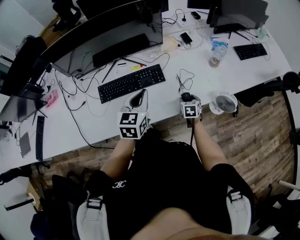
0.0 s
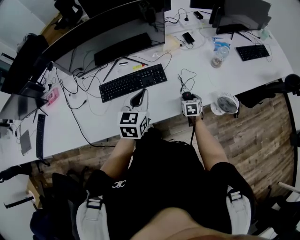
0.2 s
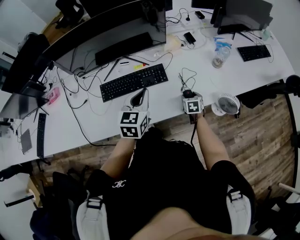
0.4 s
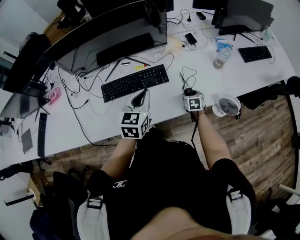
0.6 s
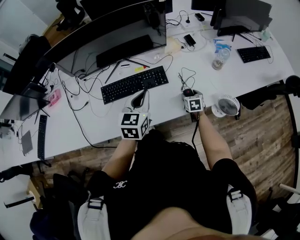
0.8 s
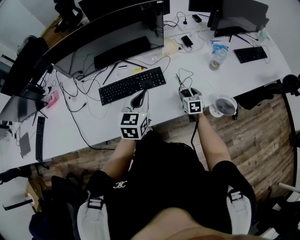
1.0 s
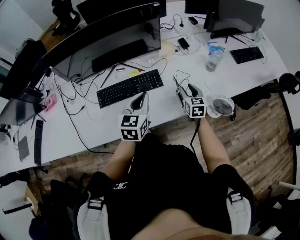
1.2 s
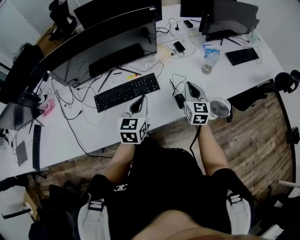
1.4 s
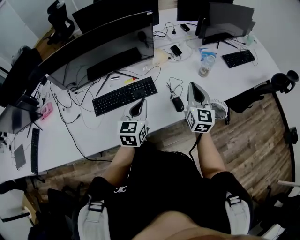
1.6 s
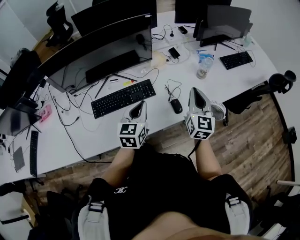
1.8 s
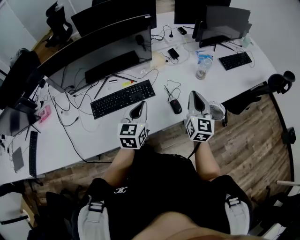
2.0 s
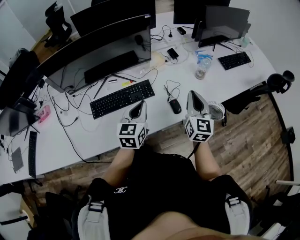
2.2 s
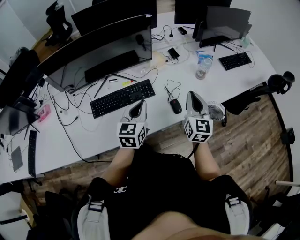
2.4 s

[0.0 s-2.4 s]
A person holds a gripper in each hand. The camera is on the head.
0.0 to 1.2 s: The right gripper travels upward by about 15 cm, and changes its angle by some 20 degrees.
1.2 to 2.4 s: The right gripper heads upward and backward, covering about 20 cm, swivels roughly 30 degrees, and closes up.

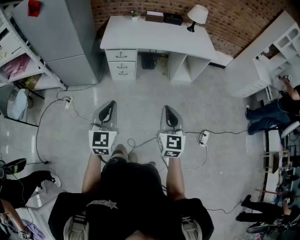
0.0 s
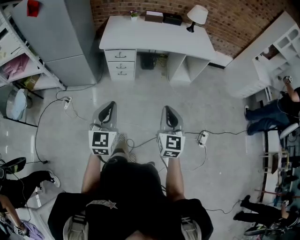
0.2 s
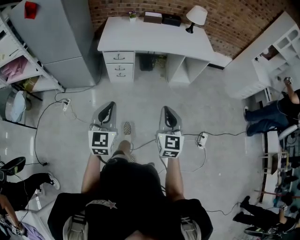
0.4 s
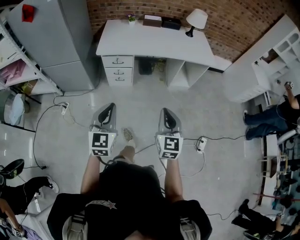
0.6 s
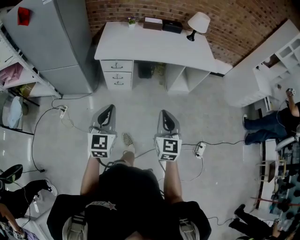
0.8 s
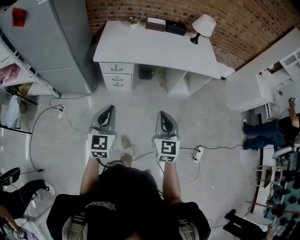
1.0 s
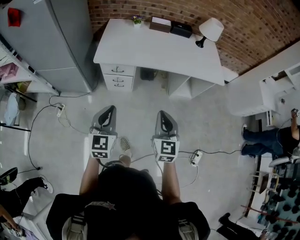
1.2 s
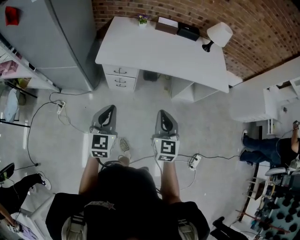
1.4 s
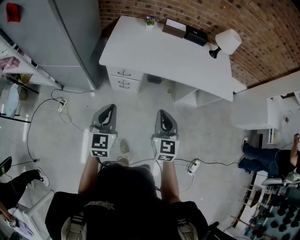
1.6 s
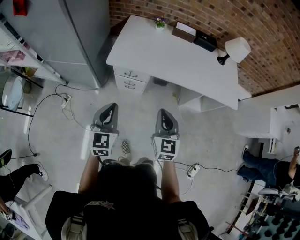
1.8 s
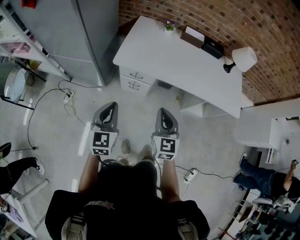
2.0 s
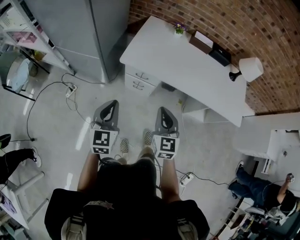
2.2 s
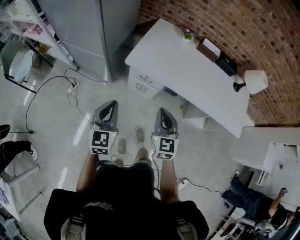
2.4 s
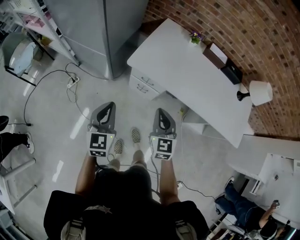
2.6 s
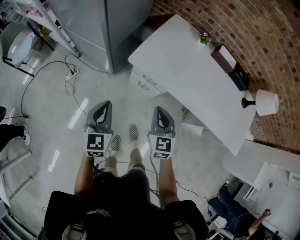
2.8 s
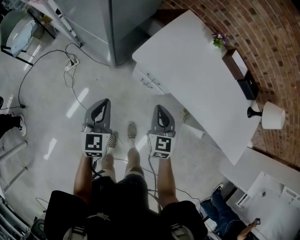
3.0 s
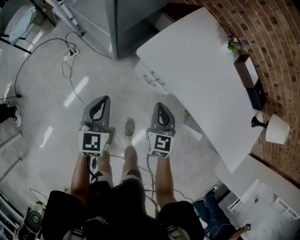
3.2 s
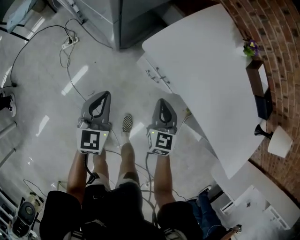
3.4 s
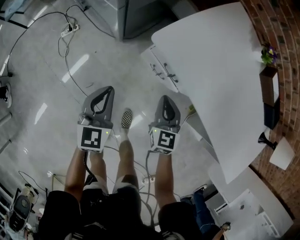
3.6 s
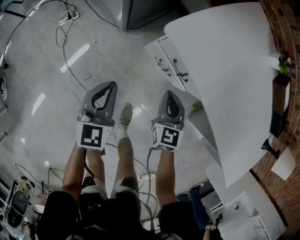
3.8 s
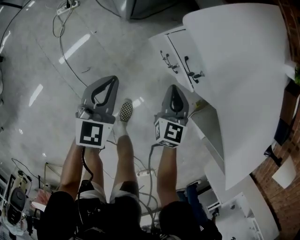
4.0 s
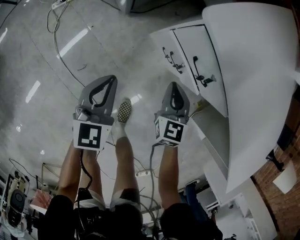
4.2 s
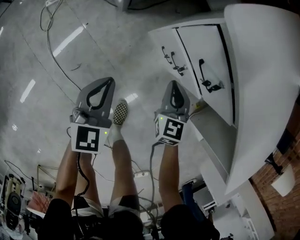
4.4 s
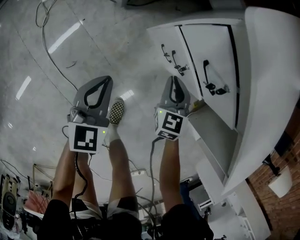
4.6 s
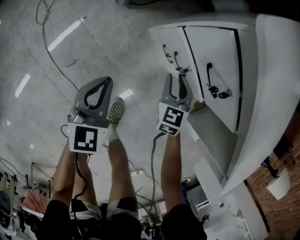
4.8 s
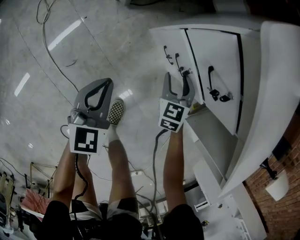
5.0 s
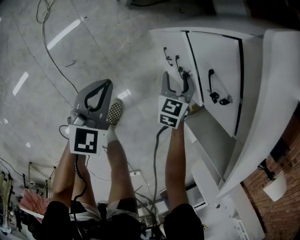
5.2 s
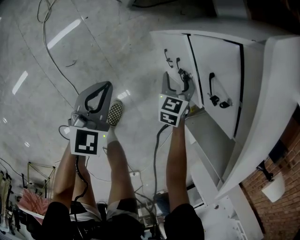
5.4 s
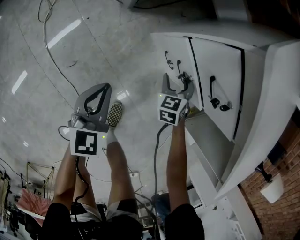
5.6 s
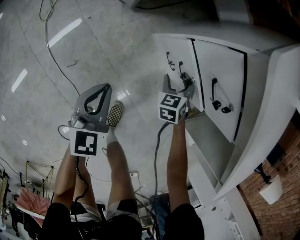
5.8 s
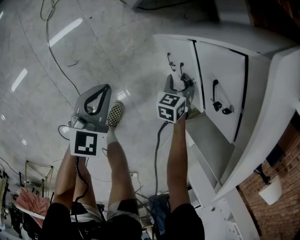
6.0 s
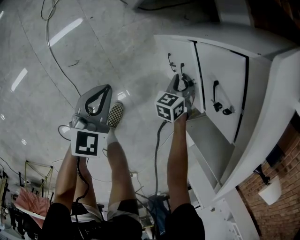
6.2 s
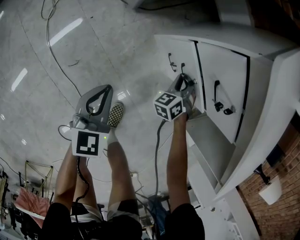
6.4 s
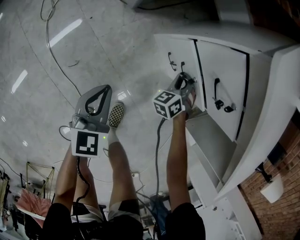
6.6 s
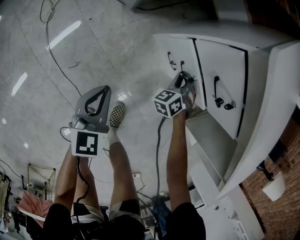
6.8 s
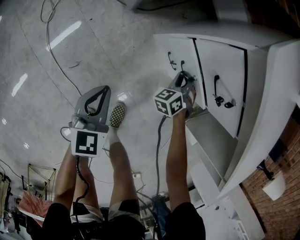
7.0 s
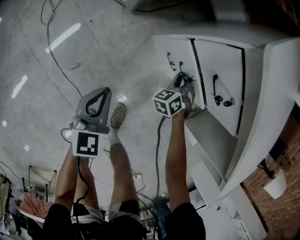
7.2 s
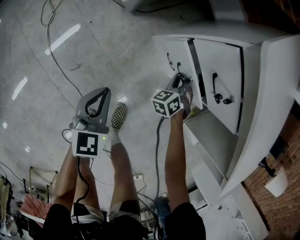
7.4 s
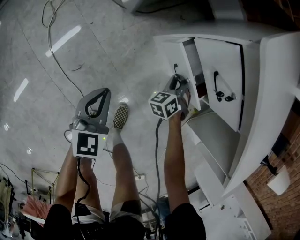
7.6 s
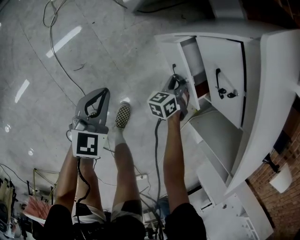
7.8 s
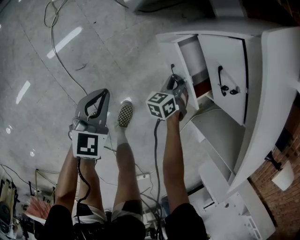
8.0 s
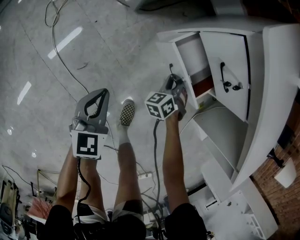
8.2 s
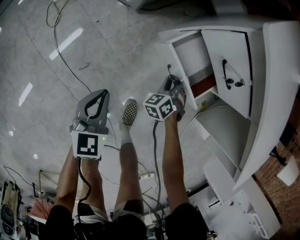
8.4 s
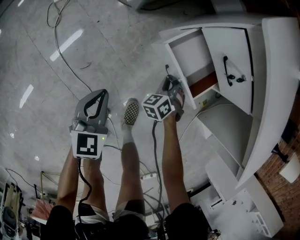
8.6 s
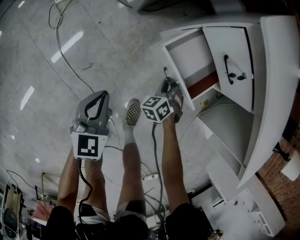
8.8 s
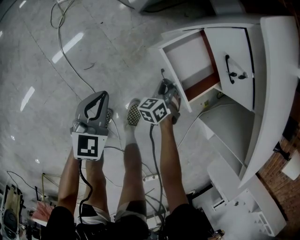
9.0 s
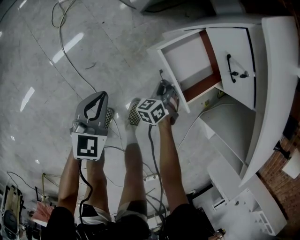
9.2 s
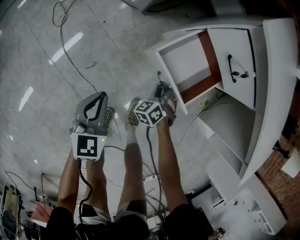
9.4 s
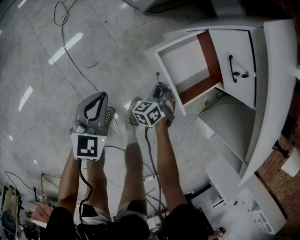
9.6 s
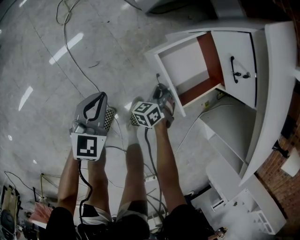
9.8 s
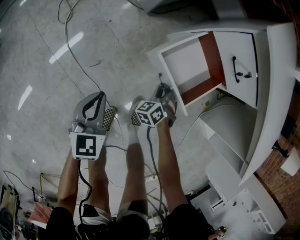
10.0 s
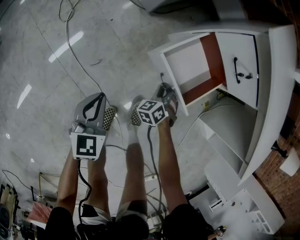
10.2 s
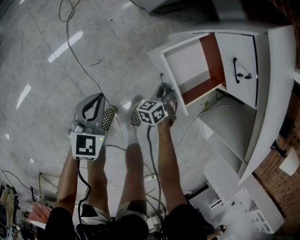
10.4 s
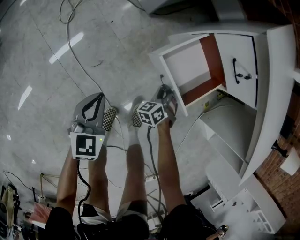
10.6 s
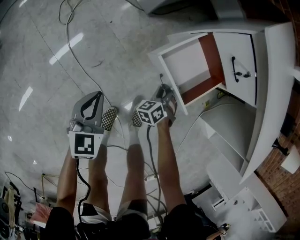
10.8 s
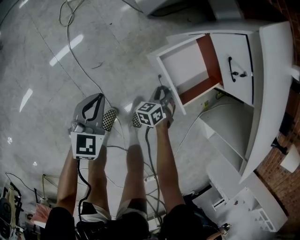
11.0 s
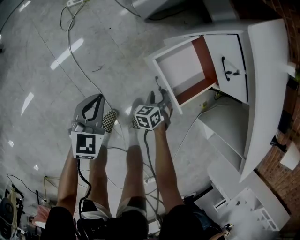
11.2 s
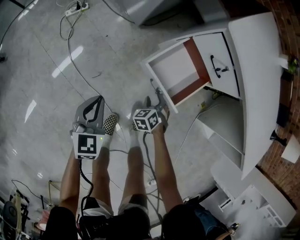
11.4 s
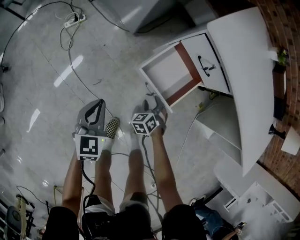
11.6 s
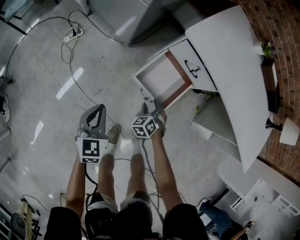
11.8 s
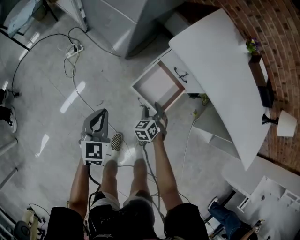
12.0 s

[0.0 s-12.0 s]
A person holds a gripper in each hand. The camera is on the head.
0.0 to 1.6 s: Both grippers travel together forward, about 35 cm.
1.6 to 3.0 s: The right gripper moves about 30 cm, and rotates some 30 degrees. Meanwhile the left gripper ends up approximately 25 cm from where it was, and rotates about 30 degrees.
3.0 to 4.4 s: Both grippers move downward, about 40 cm.
4.4 to 6.0 s: The right gripper heads downward, covering approximately 15 cm, changes its angle by some 40 degrees, and opens up. The left gripper is displaced downward by approximately 5 cm.
6.0 to 7.6 s: The right gripper closes up.
7.6 to 9.0 s: The left gripper heads backward, covering roughly 10 cm; the right gripper moves backward, roughly 15 cm.
9.0 to 10.4 s: Both grippers travel together backward, some 5 cm.
10.4 to 12.0 s: Both grippers move upward, approximately 25 cm. The right gripper opens.

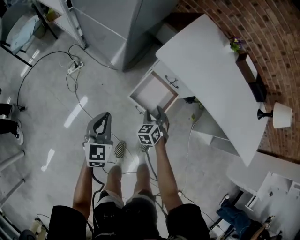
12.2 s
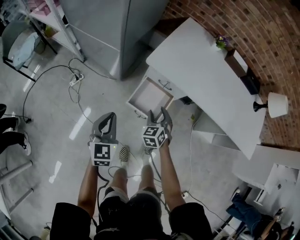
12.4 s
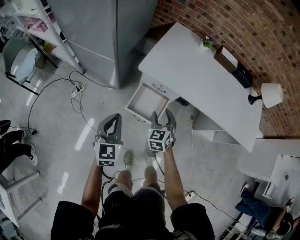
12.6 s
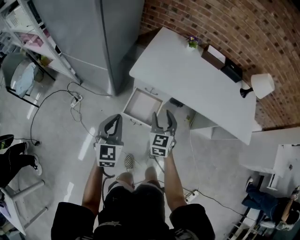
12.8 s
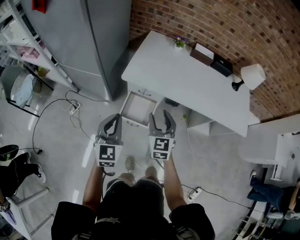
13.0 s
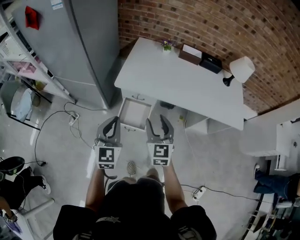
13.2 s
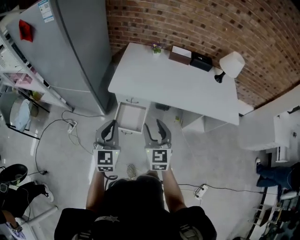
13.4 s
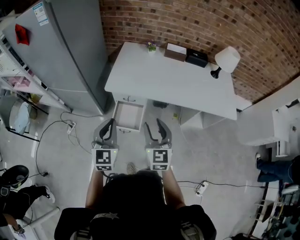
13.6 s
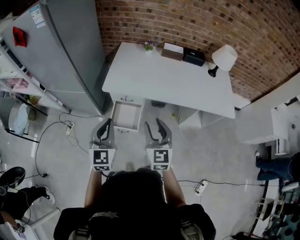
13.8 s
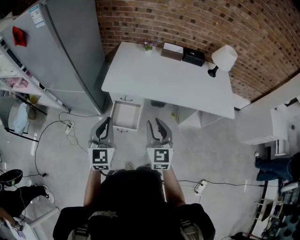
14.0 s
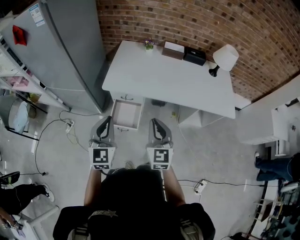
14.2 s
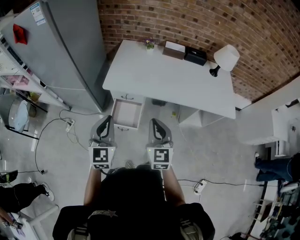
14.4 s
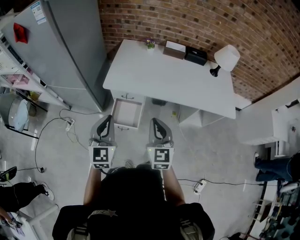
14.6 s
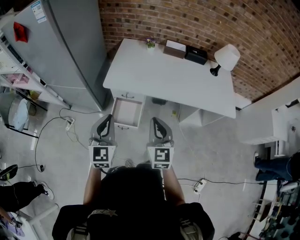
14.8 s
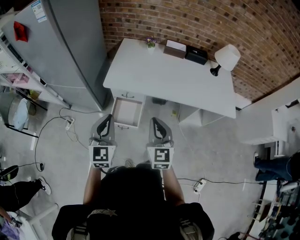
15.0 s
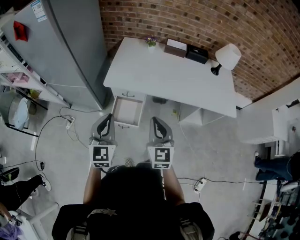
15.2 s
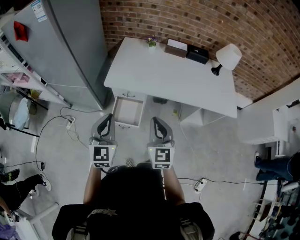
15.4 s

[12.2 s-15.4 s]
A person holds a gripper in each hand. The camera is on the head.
12.2 to 13.8 s: The grippers both shift upward and to the right by approximately 40 cm. The left gripper rotates roughly 30 degrees, while the right gripper tips its fingers upward by some 40 degrees.
13.8 to 15.4 s: The right gripper closes up.

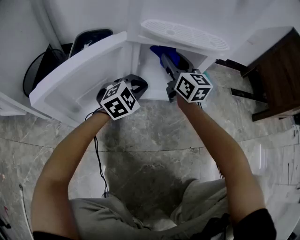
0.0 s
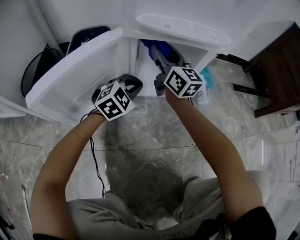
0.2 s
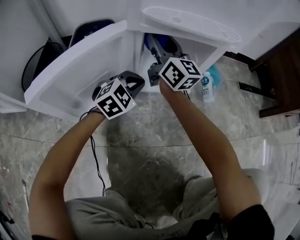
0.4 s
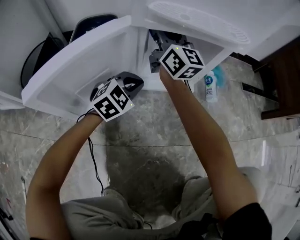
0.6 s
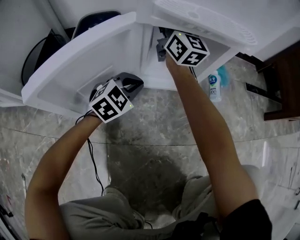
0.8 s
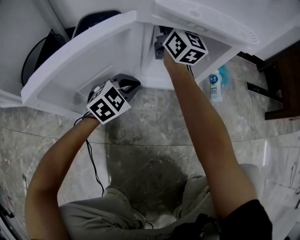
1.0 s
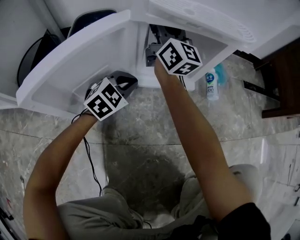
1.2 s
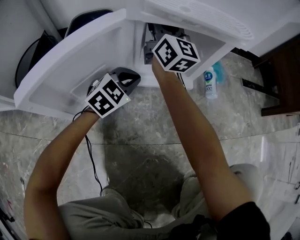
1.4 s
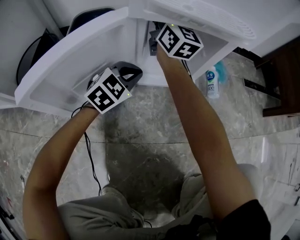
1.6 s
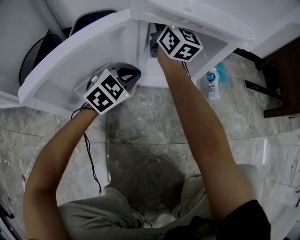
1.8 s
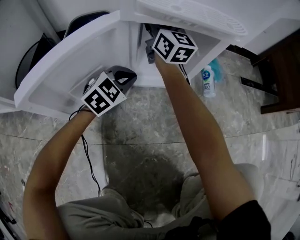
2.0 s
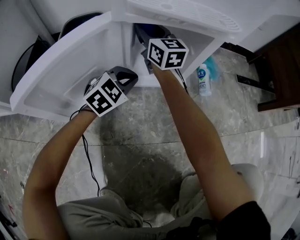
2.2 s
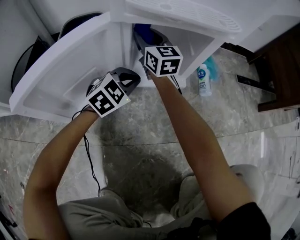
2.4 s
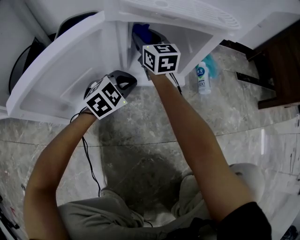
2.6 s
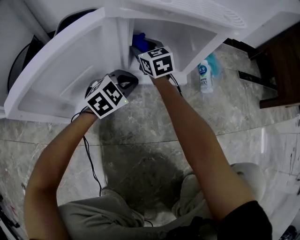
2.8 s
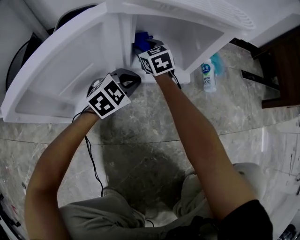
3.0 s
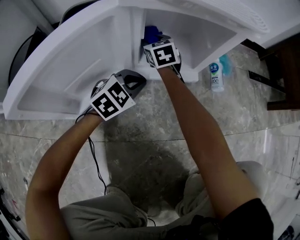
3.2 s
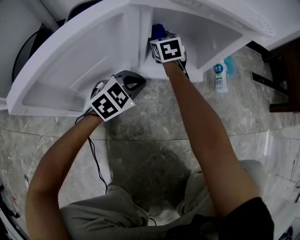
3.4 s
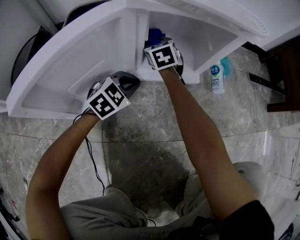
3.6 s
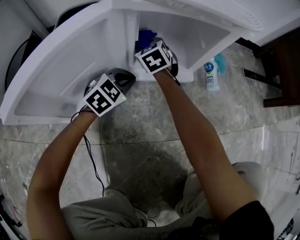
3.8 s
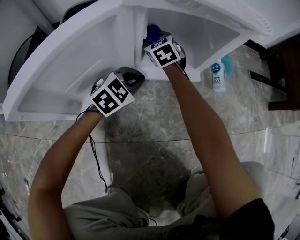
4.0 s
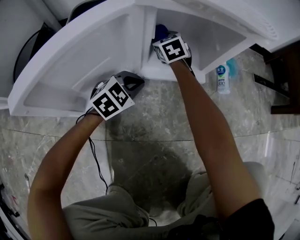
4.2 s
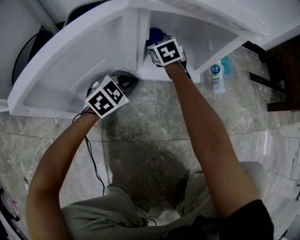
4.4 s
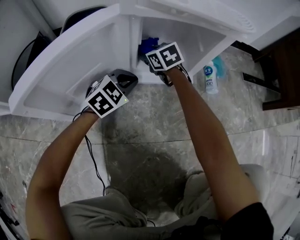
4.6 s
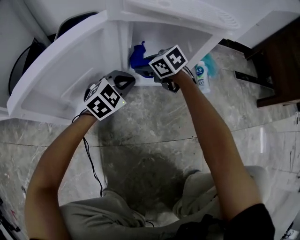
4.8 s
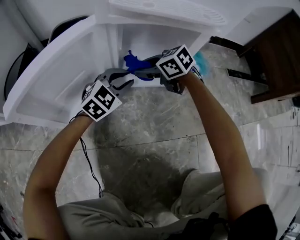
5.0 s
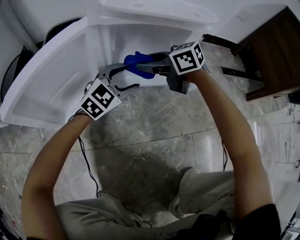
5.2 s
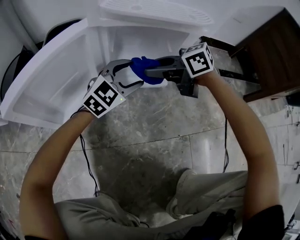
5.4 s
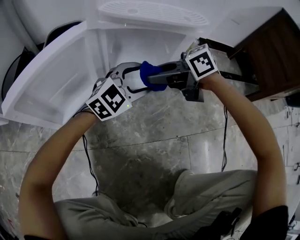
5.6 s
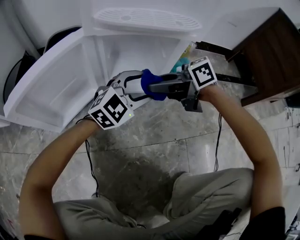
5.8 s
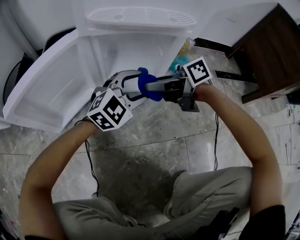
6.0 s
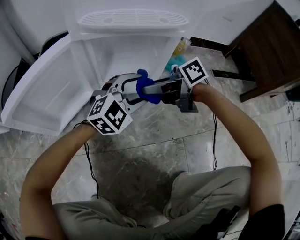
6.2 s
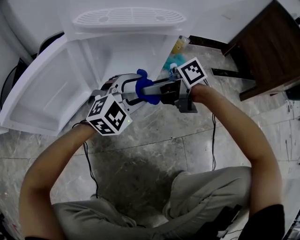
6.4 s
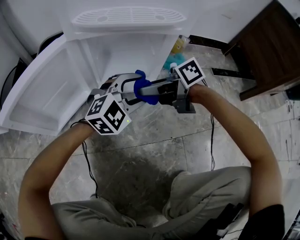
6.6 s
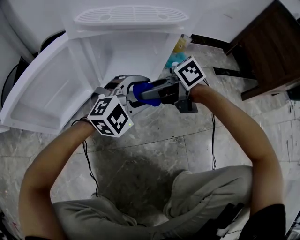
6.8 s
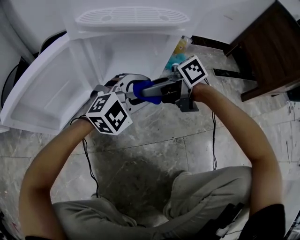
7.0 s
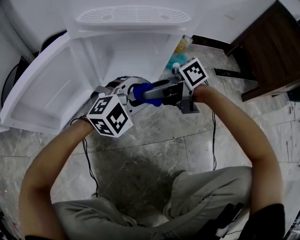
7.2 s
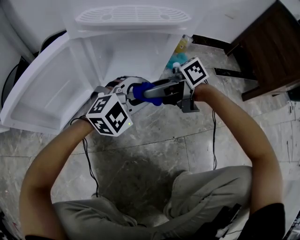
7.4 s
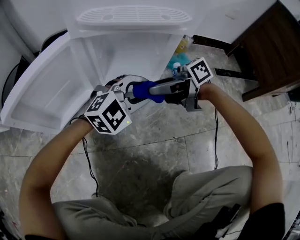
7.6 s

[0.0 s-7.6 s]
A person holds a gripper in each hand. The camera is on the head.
0.0 to 1.6 s: The right gripper moves to the left, forward and upward, roughly 15 cm.
1.6 to 3.0 s: The right gripper is displaced downward by some 25 cm, and tilts its fingers some 50 degrees downward. The left gripper travels downward by about 5 cm.
3.0 to 4.6 s: The grippers make only small movements.
4.6 to 6.0 s: The right gripper changes place by roughly 25 cm, and angles its fingers upward, by about 30 degrees. Meanwhile the left gripper moves about 20 cm, swivels about 30 degrees, and opens its fingers.
6.0 to 7.6 s: The left gripper closes its fingers.
